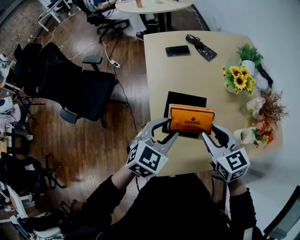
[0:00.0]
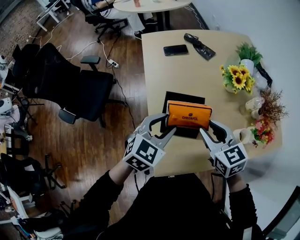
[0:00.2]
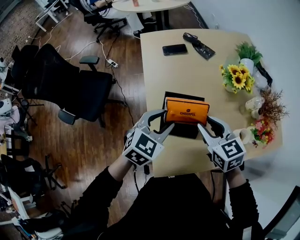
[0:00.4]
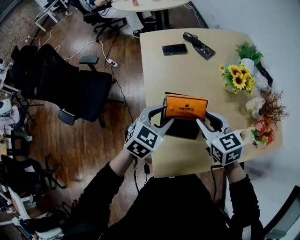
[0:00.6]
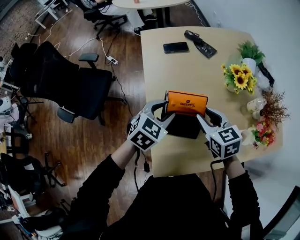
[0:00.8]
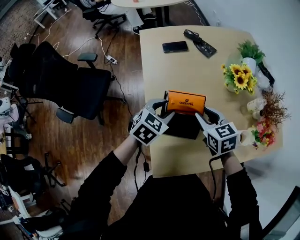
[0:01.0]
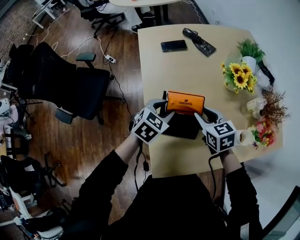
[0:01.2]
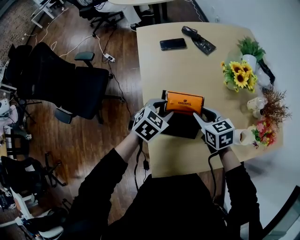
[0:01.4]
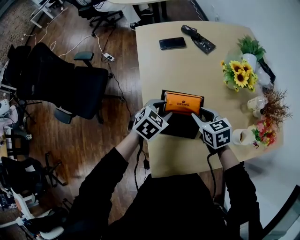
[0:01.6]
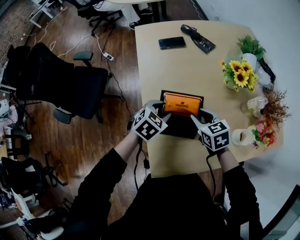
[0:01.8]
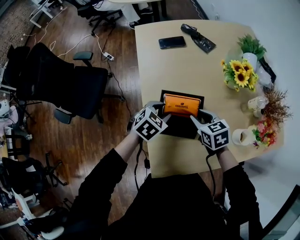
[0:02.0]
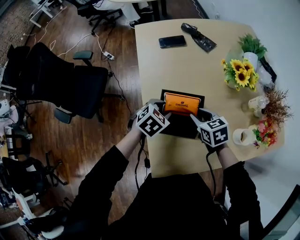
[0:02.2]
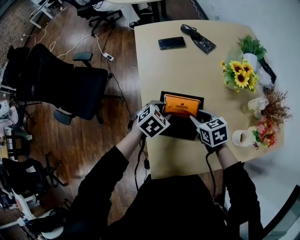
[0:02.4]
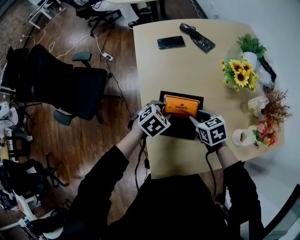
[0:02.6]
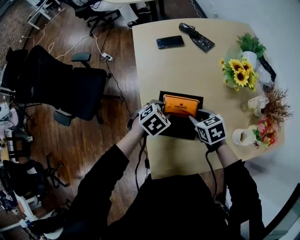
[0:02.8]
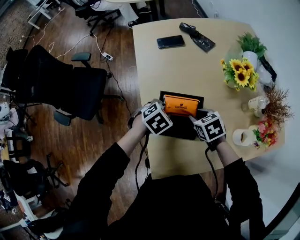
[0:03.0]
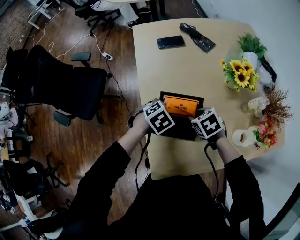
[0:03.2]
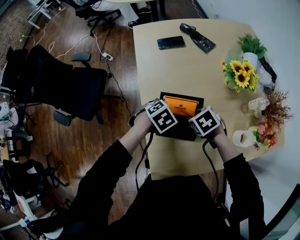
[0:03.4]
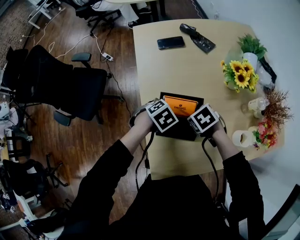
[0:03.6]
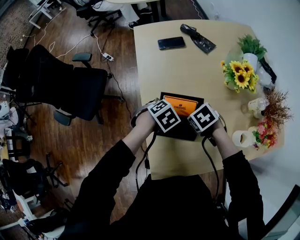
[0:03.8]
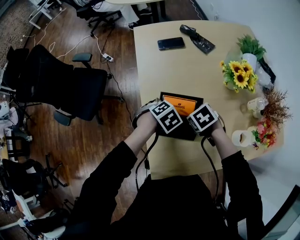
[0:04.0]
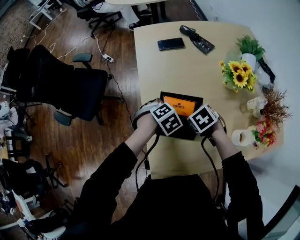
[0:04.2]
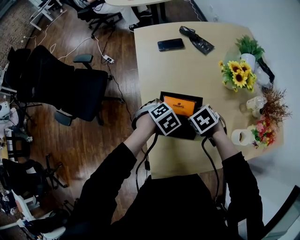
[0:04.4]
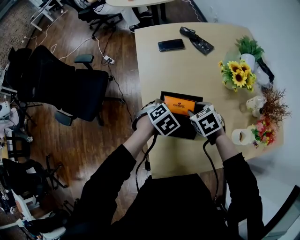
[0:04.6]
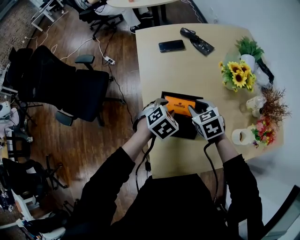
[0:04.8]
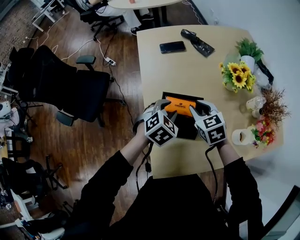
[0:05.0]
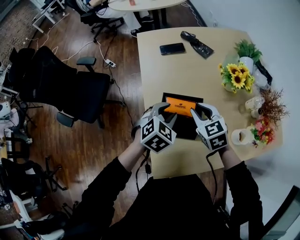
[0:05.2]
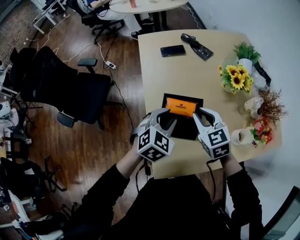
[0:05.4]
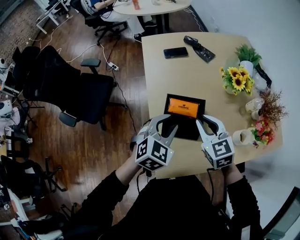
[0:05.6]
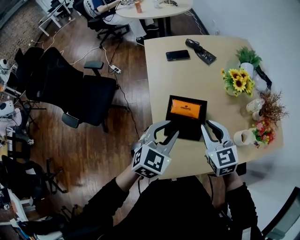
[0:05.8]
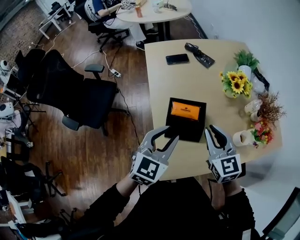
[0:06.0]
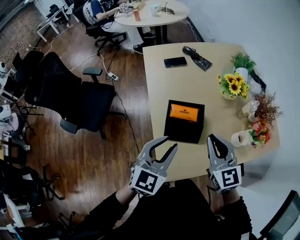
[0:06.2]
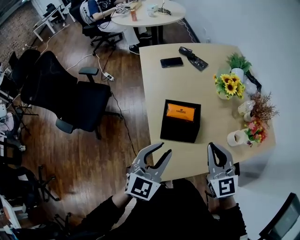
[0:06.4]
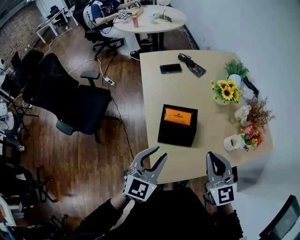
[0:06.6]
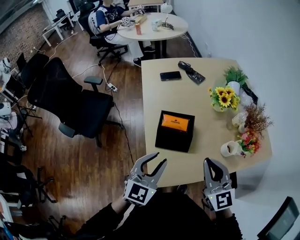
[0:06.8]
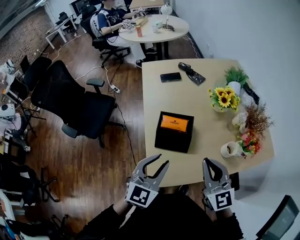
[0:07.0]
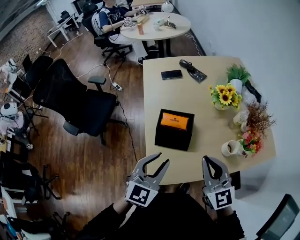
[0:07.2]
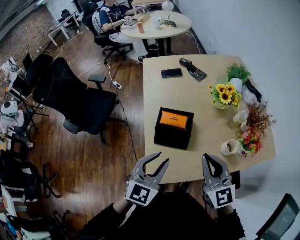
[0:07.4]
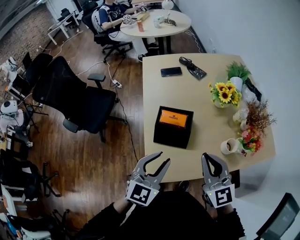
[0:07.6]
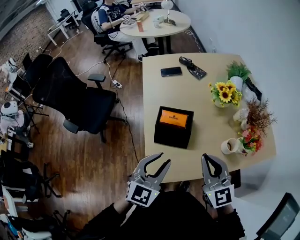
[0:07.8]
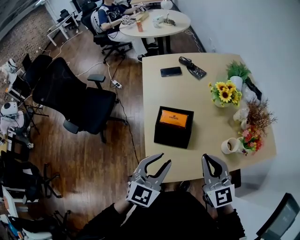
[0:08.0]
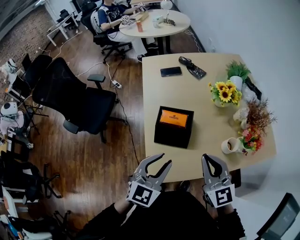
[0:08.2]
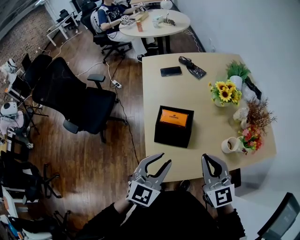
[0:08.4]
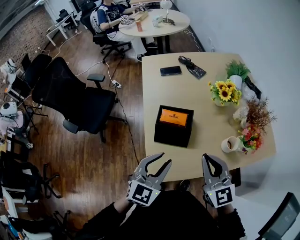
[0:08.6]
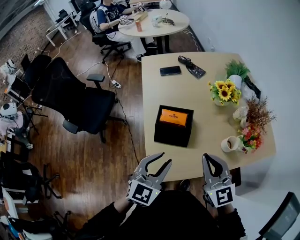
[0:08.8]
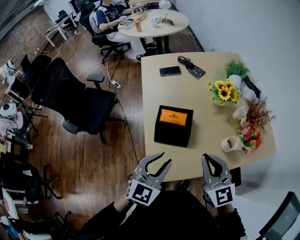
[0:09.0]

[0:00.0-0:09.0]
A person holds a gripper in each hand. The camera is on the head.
0:00.0 to 0:01.6: Both grippers move downward and forward, about 15 cm.
0:01.6 to 0:03.0: The grippers stay close to where they were, moving slightly.
0:04.4 to 0:06.0: Both grippers travel together upward, approximately 20 cm. The right gripper points its fingers about 60 degrees further upward, while the left gripper angles its fingers upward, by about 50 degrees.
0:06.0 to 0:07.6: The right gripper goes about 10 cm backward, to the right and upward. The left gripper goes about 10 cm backward and to the right.
0:07.6 to 0:09.0: Neither gripper changes place.

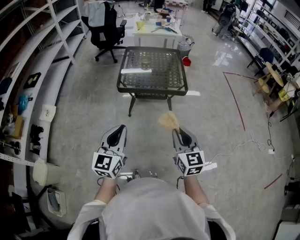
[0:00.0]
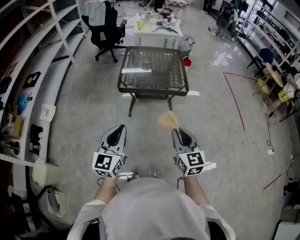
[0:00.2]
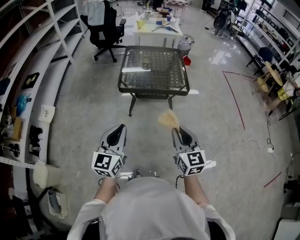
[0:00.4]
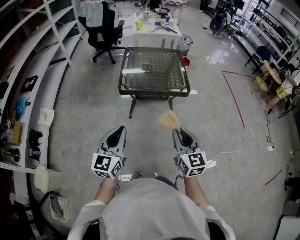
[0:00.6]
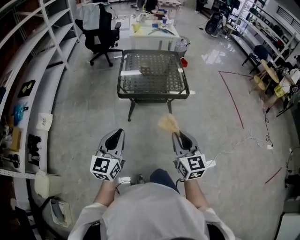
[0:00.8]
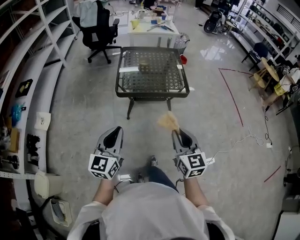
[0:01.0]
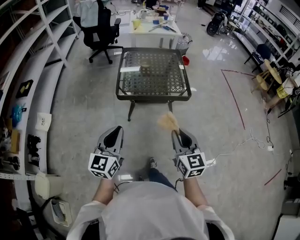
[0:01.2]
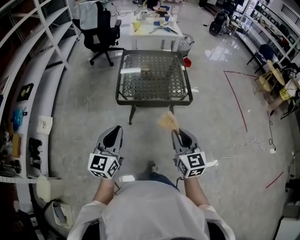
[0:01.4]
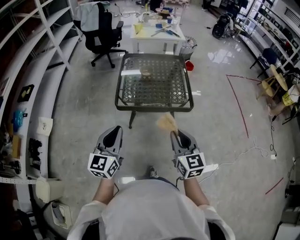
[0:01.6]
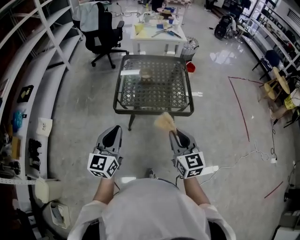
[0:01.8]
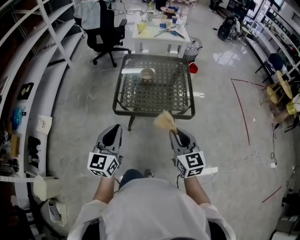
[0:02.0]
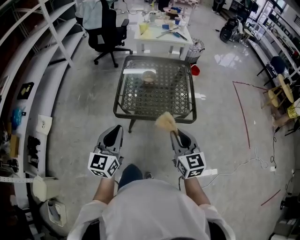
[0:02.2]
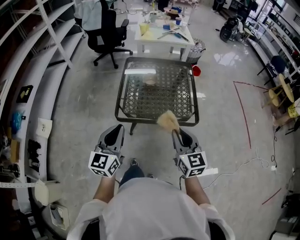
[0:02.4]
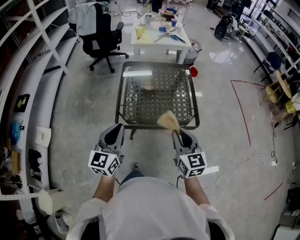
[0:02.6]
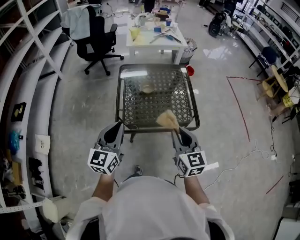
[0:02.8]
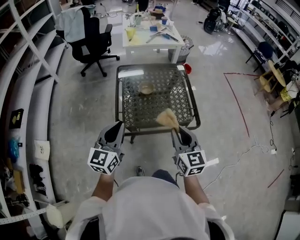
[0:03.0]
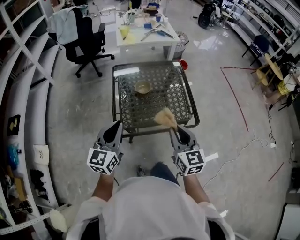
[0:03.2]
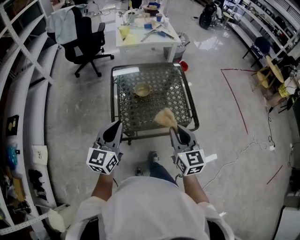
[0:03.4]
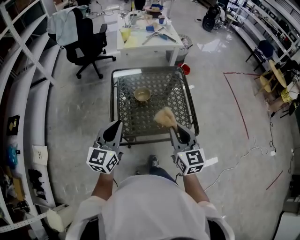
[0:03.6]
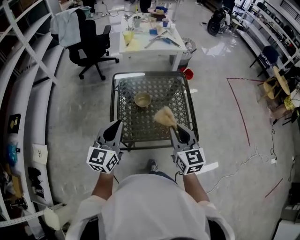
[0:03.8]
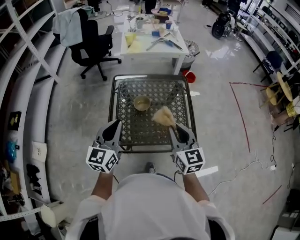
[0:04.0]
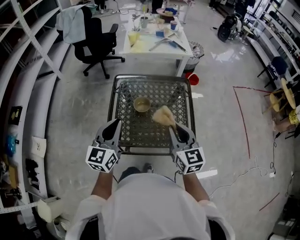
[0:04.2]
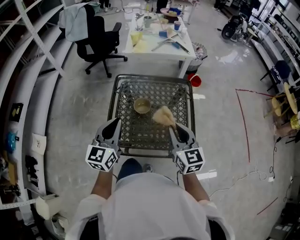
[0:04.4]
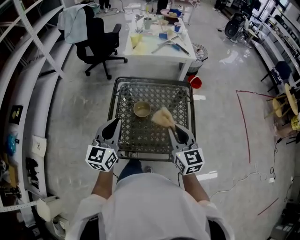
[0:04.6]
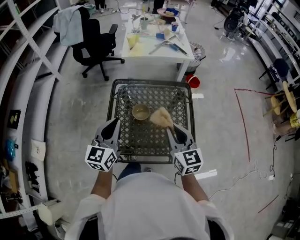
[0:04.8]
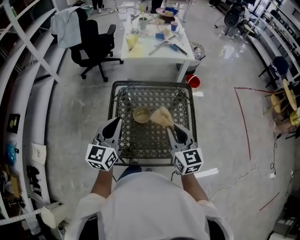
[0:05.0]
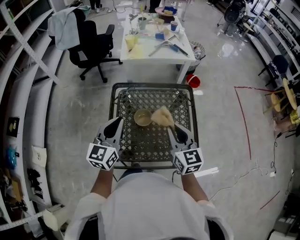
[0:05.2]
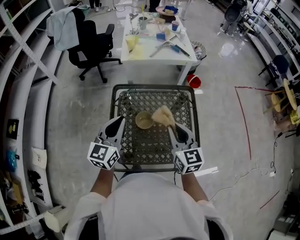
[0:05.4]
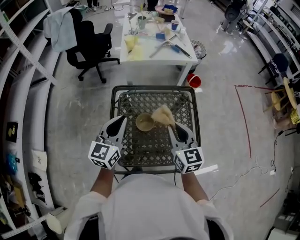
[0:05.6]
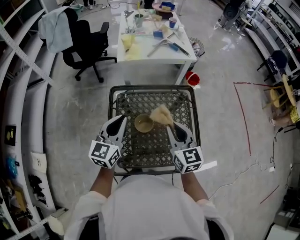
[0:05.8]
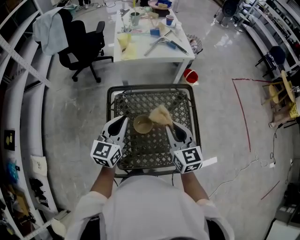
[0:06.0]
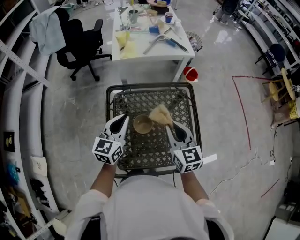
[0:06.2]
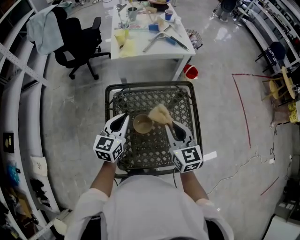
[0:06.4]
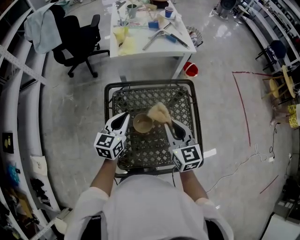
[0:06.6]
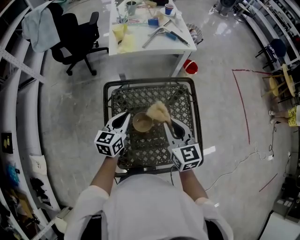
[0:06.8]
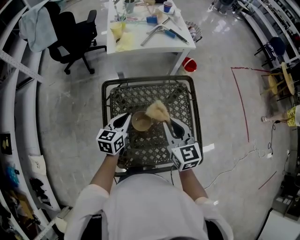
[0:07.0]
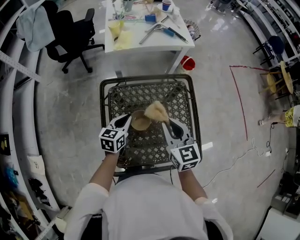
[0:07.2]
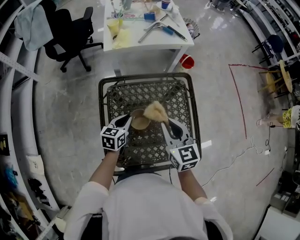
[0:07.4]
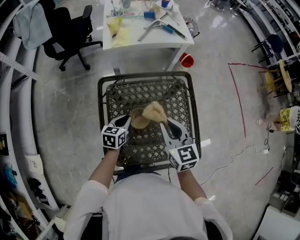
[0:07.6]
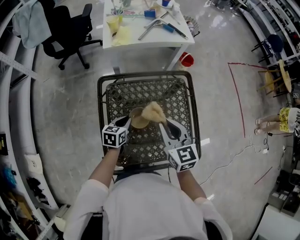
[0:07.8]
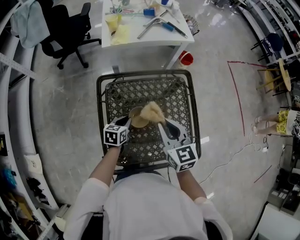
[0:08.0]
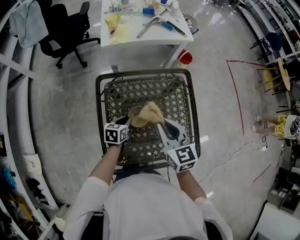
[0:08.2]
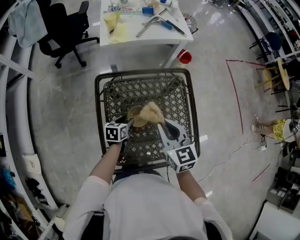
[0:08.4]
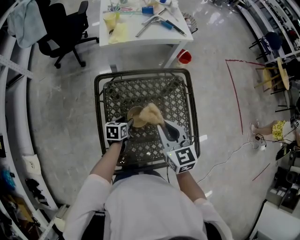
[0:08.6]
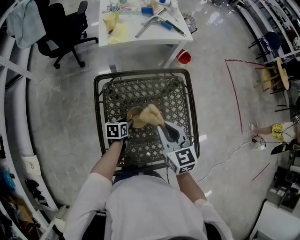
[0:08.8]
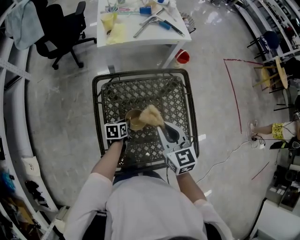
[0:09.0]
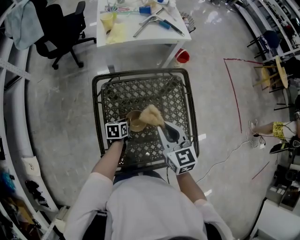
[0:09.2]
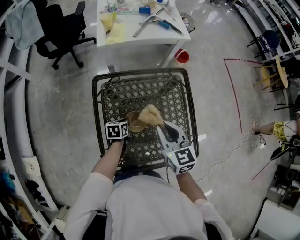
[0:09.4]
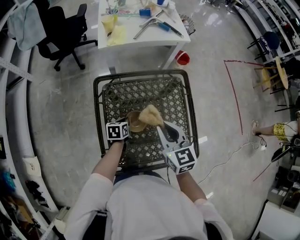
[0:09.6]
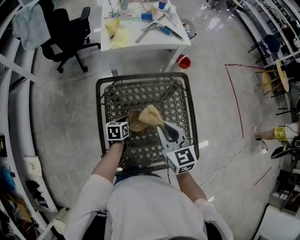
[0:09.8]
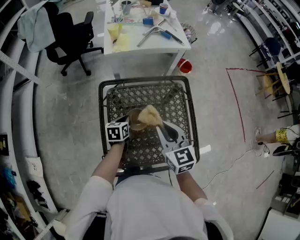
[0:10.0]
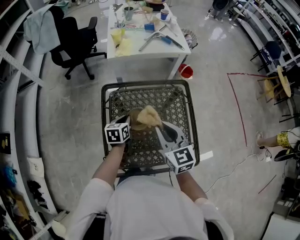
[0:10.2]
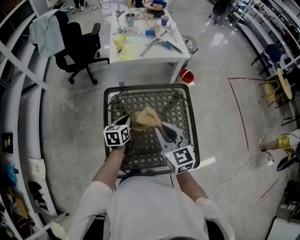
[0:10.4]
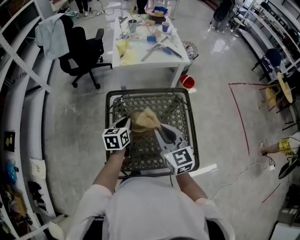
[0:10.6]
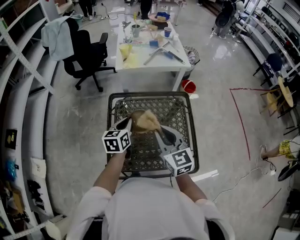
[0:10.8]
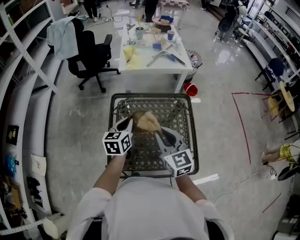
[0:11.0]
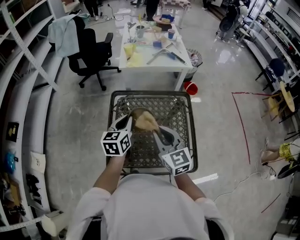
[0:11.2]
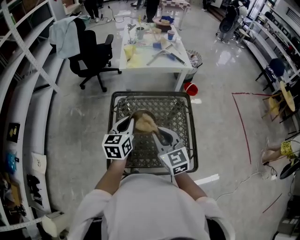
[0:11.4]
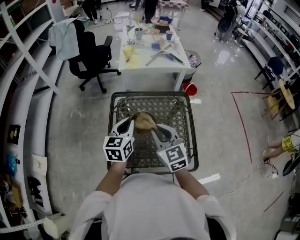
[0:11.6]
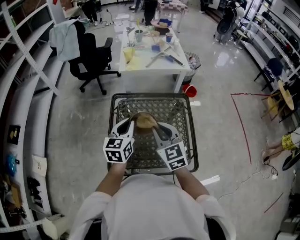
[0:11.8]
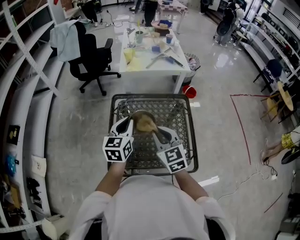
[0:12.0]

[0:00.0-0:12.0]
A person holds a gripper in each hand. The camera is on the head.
0:00.0 to 0:01.6: Both grippers travel together forward, approximately 20 cm.
0:01.6 to 0:03.0: The two grippers go approximately 20 cm forward.
0:03.0 to 0:04.4: Both grippers move forward, about 20 cm.
0:04.4 to 0:06.0: Both grippers move forward, about 15 cm.
0:06.0 to 0:07.6: The left gripper shifts approximately 20 cm downward, and changes its angle by about 30 degrees; the right gripper ends up roughly 5 cm from where it was.
0:07.6 to 0:09.0: The left gripper travels downward by some 10 cm, rotates about 20 degrees, and opens and closes again.
0:09.0 to 0:10.4: The left gripper is displaced upward by about 15 cm, and turns by some 20 degrees. The right gripper shifts roughly 5 cm upward.
0:10.4 to 0:12.0: The right gripper shifts some 5 cm backward. The left gripper moves upward and backward, approximately 20 cm, and swivels some 30 degrees.

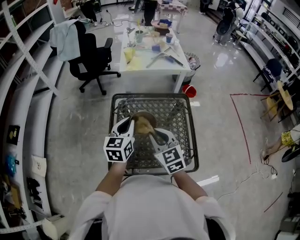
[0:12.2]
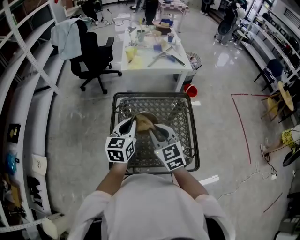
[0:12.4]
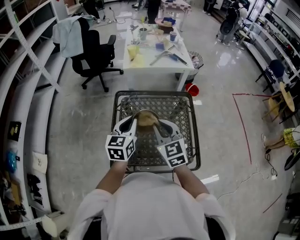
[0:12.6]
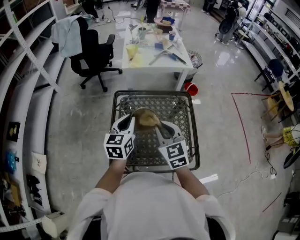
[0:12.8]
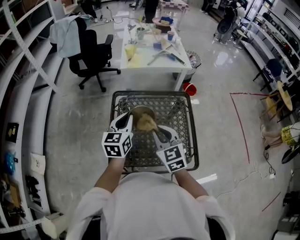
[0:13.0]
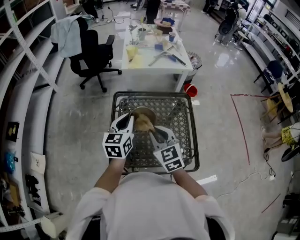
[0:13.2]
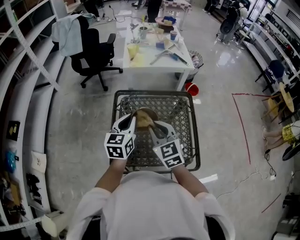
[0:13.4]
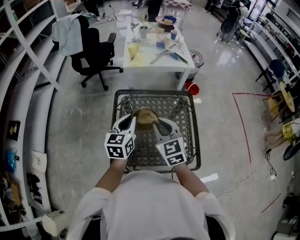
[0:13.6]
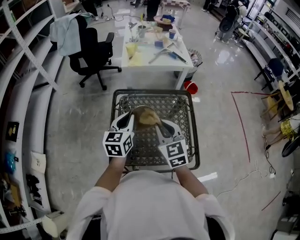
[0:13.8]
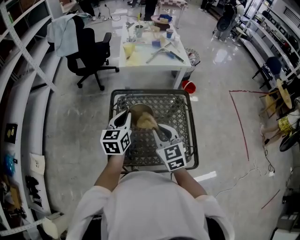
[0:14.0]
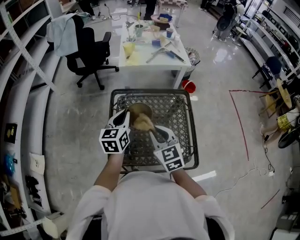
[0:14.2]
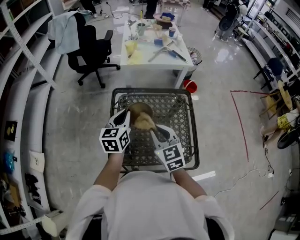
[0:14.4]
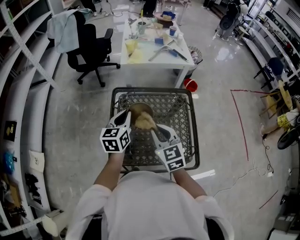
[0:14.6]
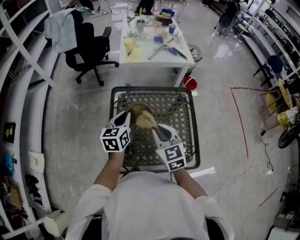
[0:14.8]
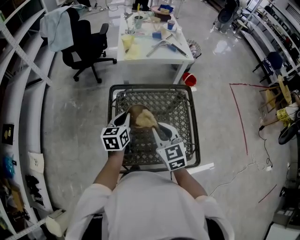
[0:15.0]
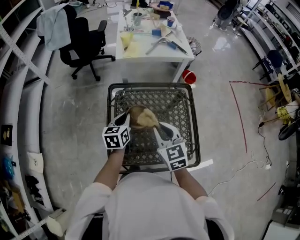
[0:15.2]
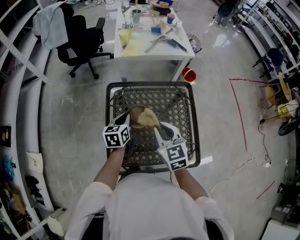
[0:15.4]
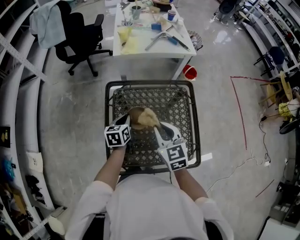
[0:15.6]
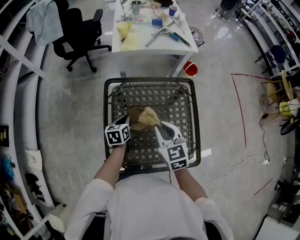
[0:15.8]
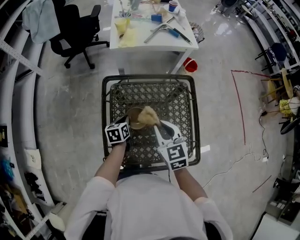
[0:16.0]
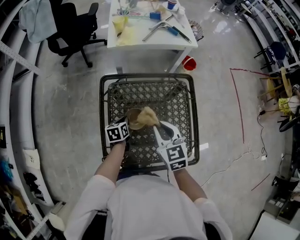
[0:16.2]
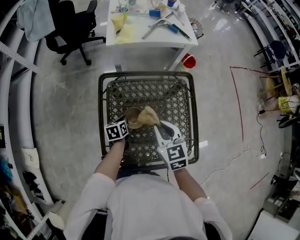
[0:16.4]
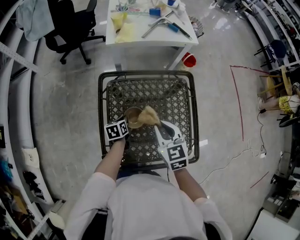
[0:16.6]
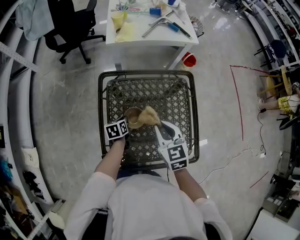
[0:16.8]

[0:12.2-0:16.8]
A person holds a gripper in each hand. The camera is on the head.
0:12.2 to 0:13.8: The grippers make only small movements.
0:13.8 to 0:15.2: The left gripper travels downward and forward by some 10 cm.
0:15.2 to 0:16.8: The right gripper goes some 5 cm downward, while the left gripper is displaced downward by about 20 cm, and rotates approximately 30 degrees.
